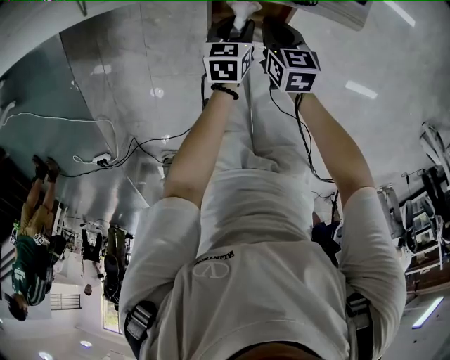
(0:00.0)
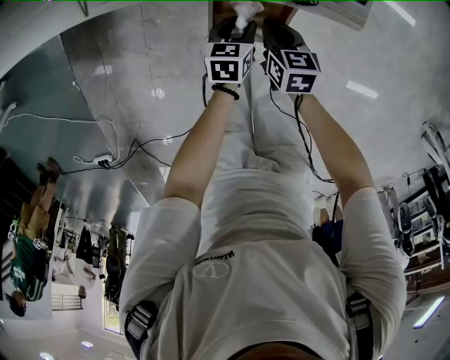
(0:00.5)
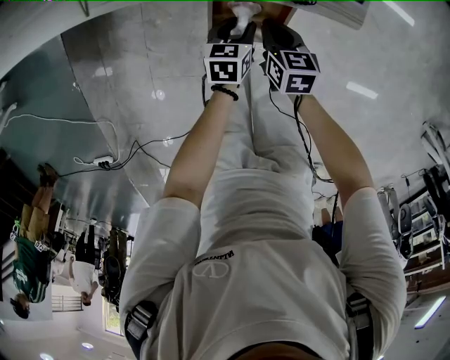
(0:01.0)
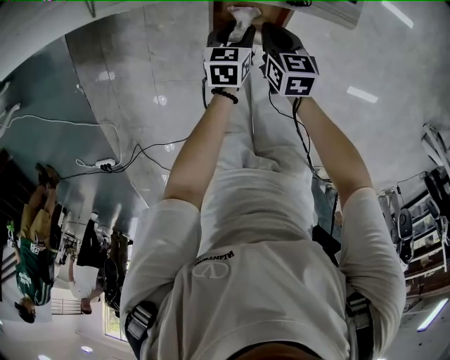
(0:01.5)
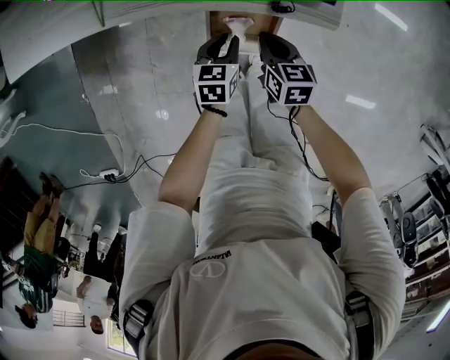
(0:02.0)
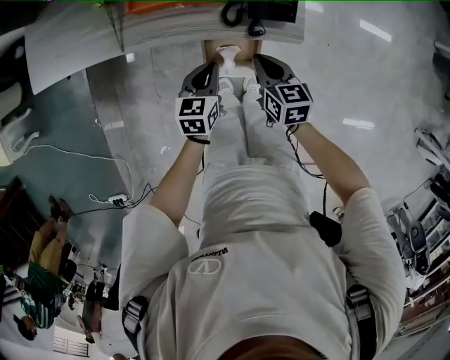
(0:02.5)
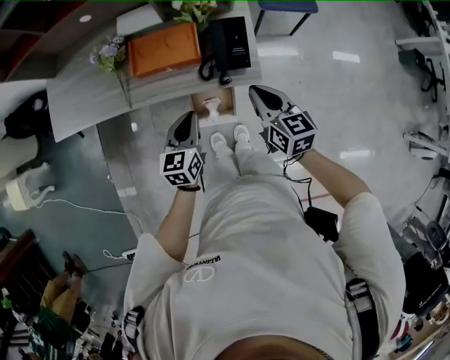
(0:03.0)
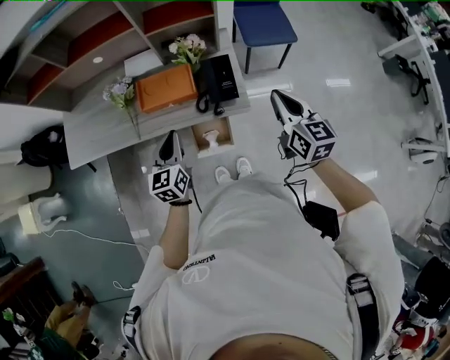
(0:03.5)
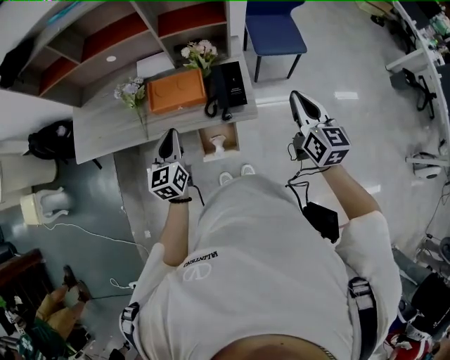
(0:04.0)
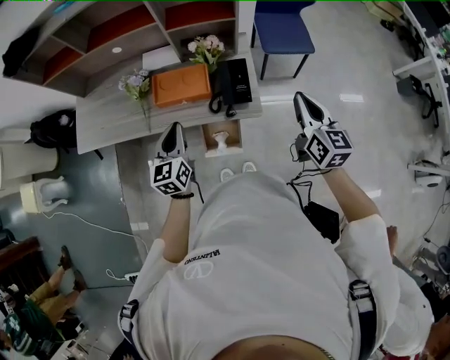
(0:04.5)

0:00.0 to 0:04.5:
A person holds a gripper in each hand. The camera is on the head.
0:00.0 to 0:02.0: Both grippers move upward, approximately 5 cm.
0:02.0 to 0:04.5: The left gripper heads upward, covering approximately 40 cm, and tips its fingers upward by approximately 30 degrees. Meanwhile the right gripper moves upward and to the right, approximately 50 cm, and tips its fingers upward by some 30 degrees.

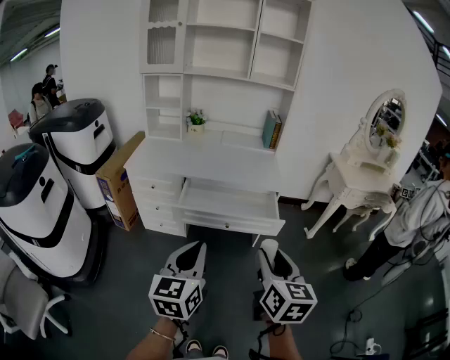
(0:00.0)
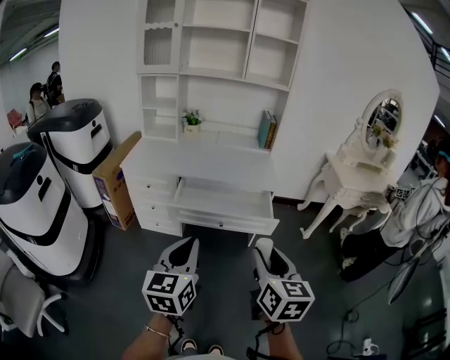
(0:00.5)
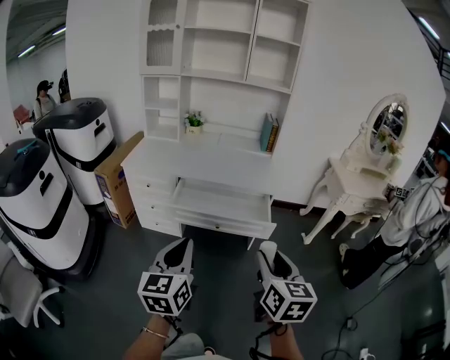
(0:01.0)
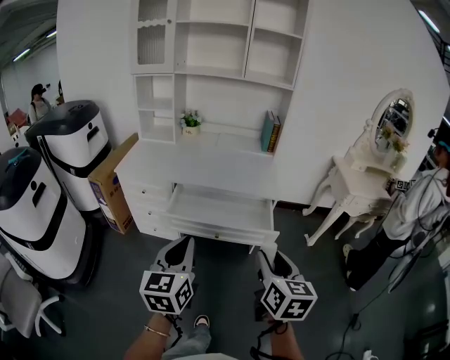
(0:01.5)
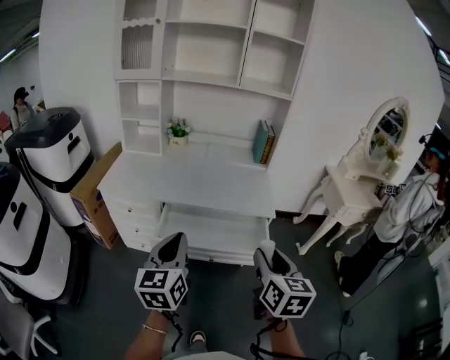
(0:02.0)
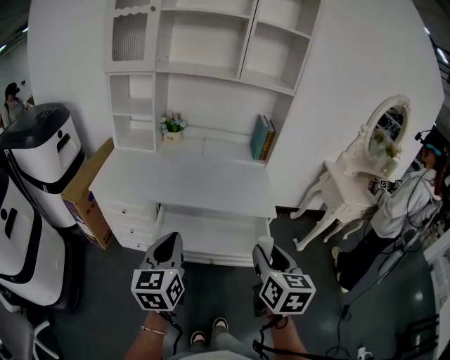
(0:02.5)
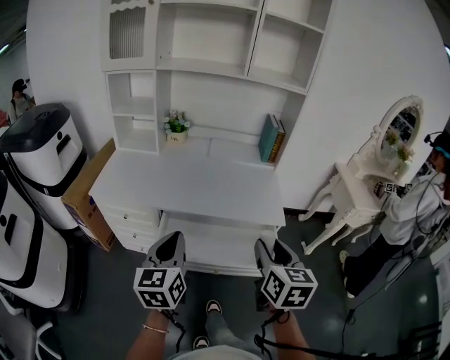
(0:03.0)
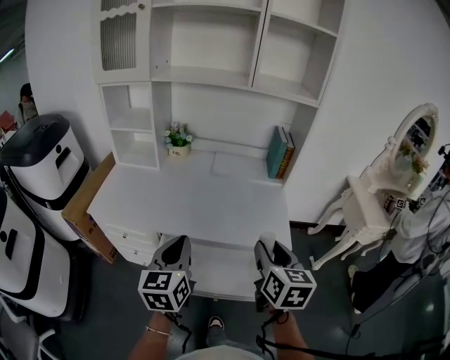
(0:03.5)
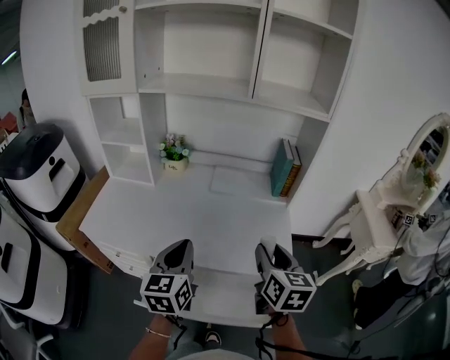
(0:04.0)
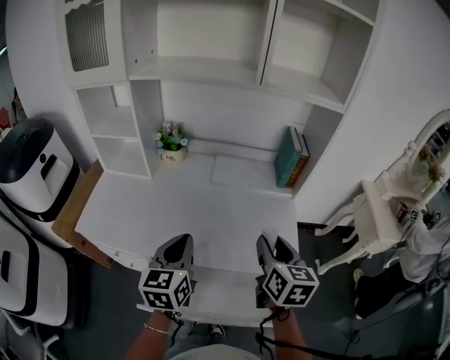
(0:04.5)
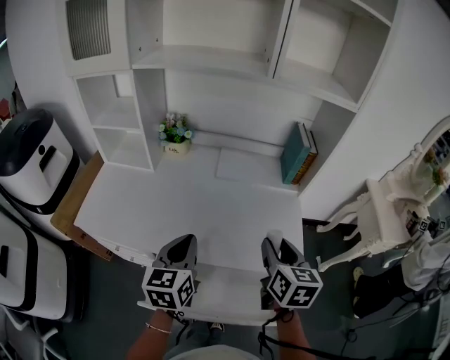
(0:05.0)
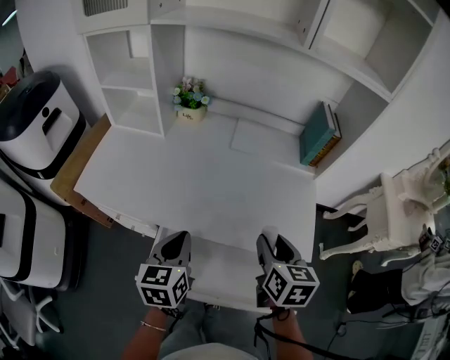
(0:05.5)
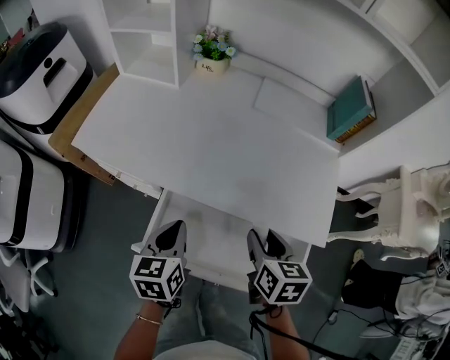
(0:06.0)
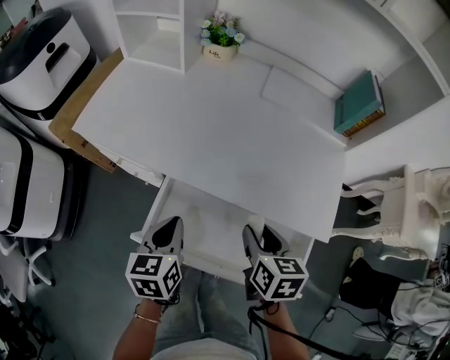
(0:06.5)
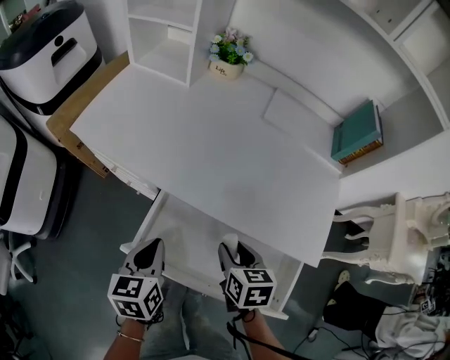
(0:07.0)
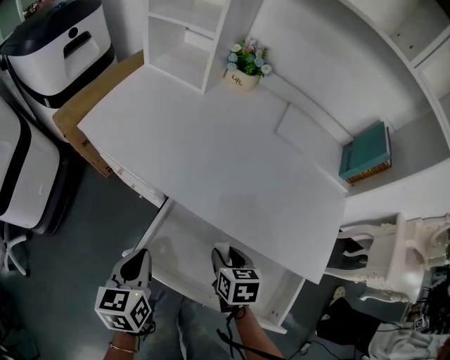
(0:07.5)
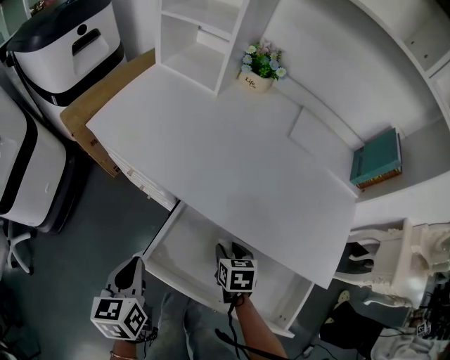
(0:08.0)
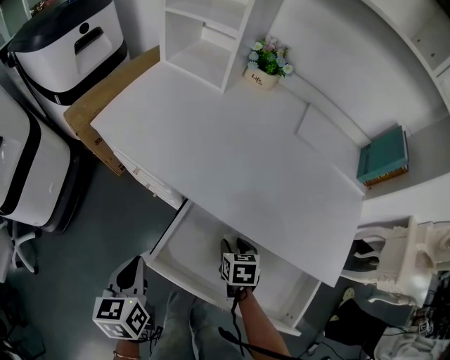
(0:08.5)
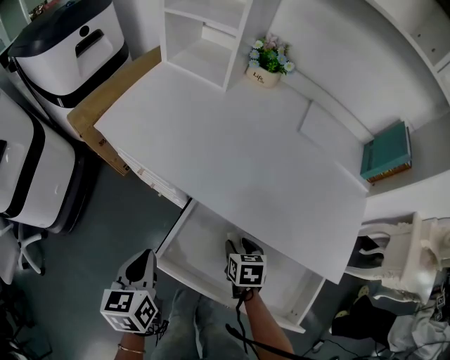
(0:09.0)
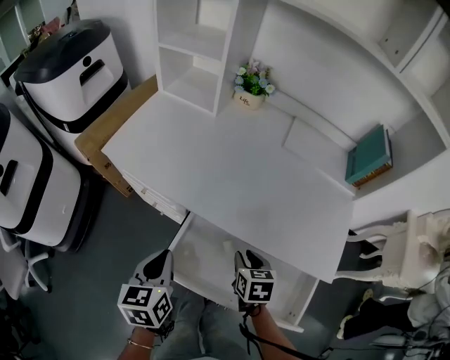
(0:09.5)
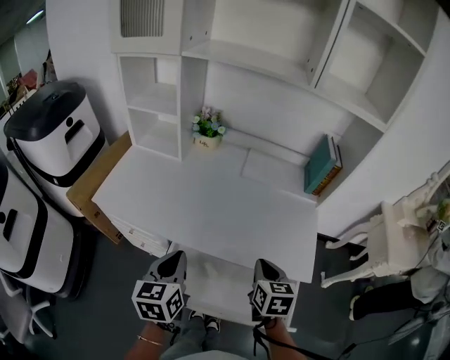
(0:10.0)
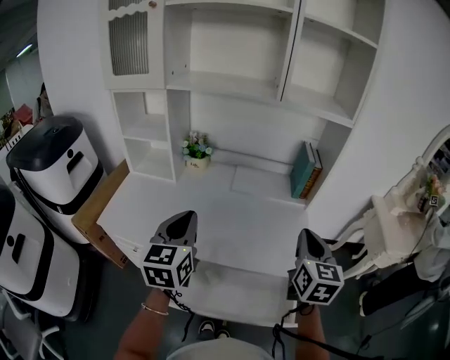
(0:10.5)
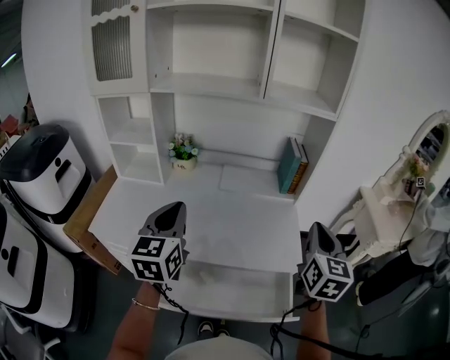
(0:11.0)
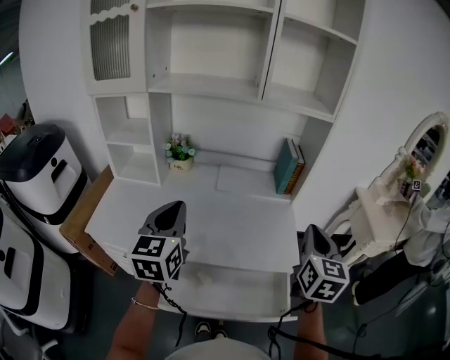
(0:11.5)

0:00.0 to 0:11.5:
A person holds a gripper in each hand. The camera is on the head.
0:00.0 to 0:02.0: Both grippers travel together forward, some 20 cm.
0:02.0 to 0:04.0: The grippers both shift forward by approximately 35 cm.
0:04.0 to 0:06.0: The two grippers go approximately 20 cm downward and to the left. The right gripper turns by approximately 30 degrees; the left gripper changes its angle by about 30 degrees.
0:06.0 to 0:07.5: The right gripper moves downward and to the left, some 15 cm, and swivels roughly 20 degrees. Meanwhile the left gripper shifts some 10 cm to the left.
0:07.5 to 0:09.5: The right gripper reaches approximately 5 cm downward, then returns.
0:09.5 to 0:11.5: Both grippers travel together upward, some 30 cm. The right gripper points its fingers roughly 40 degrees further upward, and closes up, while the left gripper rotates about 40 degrees.

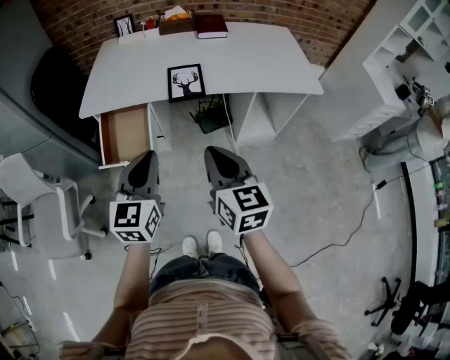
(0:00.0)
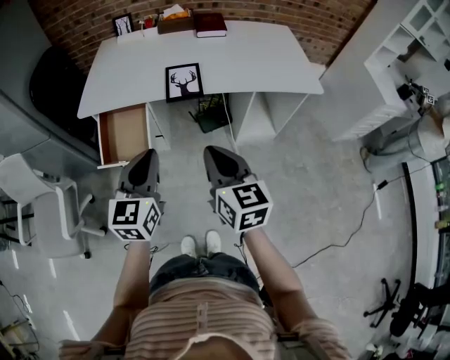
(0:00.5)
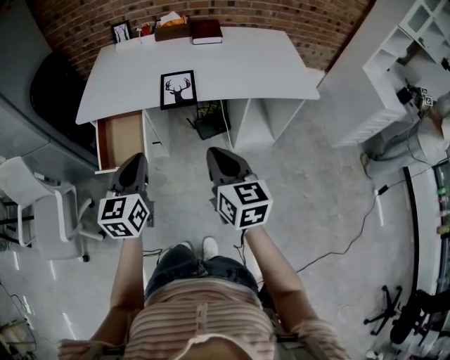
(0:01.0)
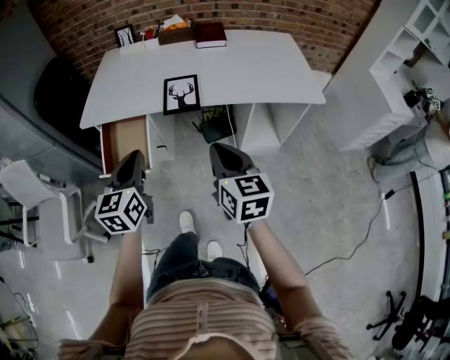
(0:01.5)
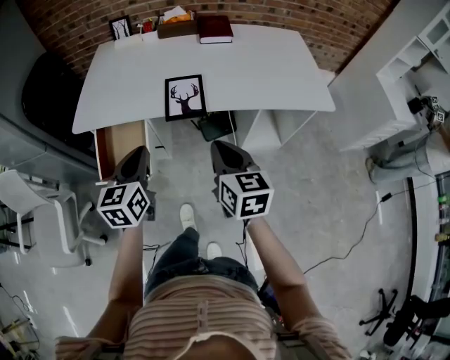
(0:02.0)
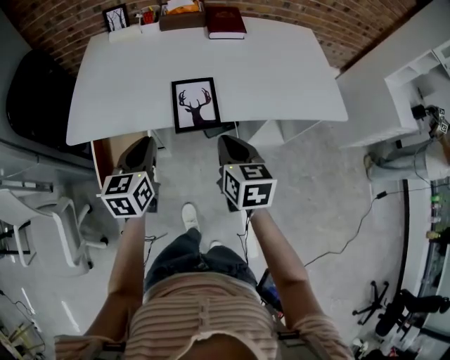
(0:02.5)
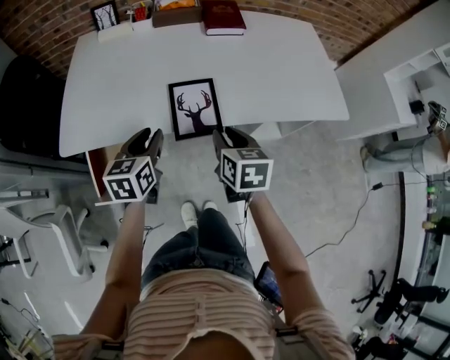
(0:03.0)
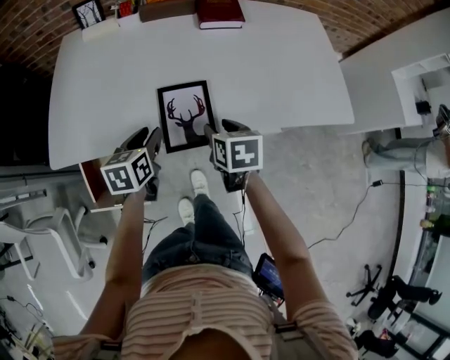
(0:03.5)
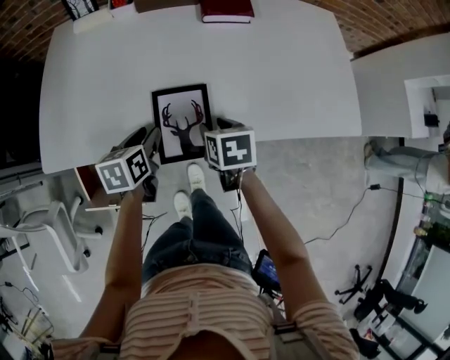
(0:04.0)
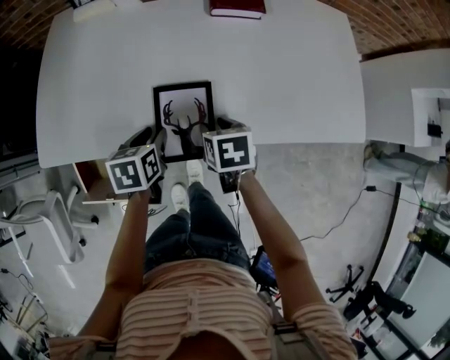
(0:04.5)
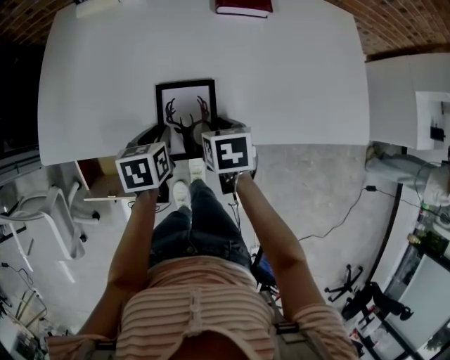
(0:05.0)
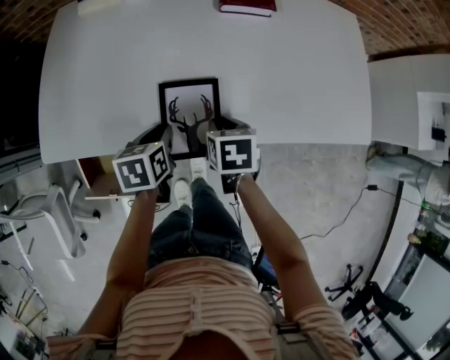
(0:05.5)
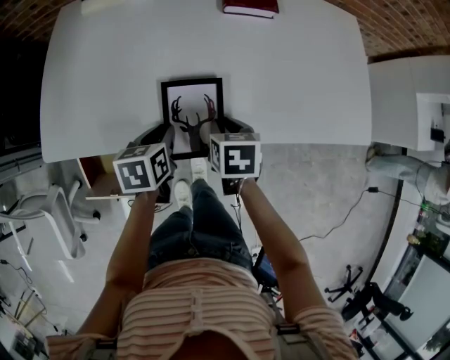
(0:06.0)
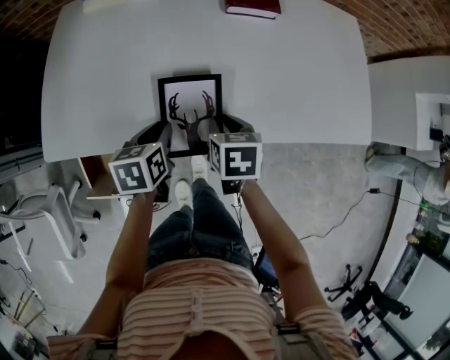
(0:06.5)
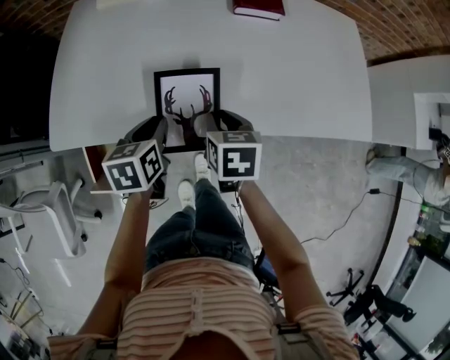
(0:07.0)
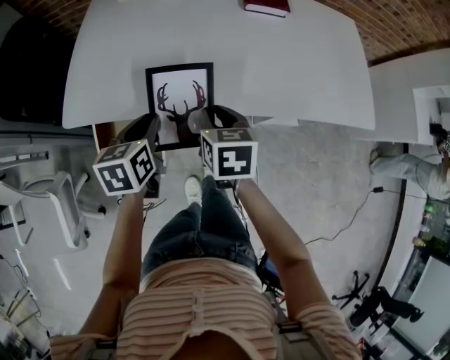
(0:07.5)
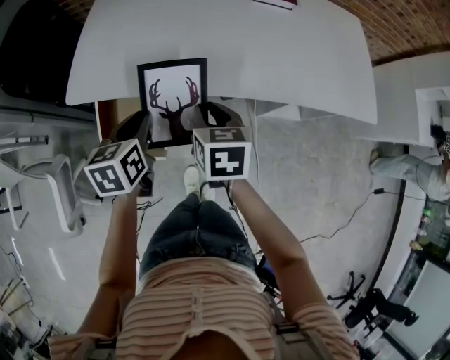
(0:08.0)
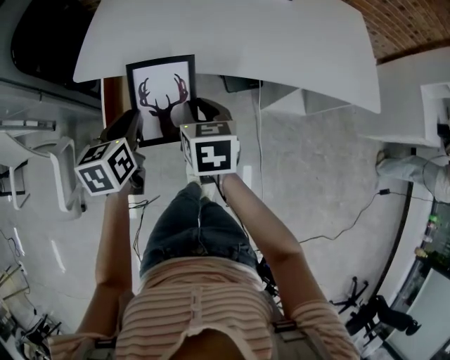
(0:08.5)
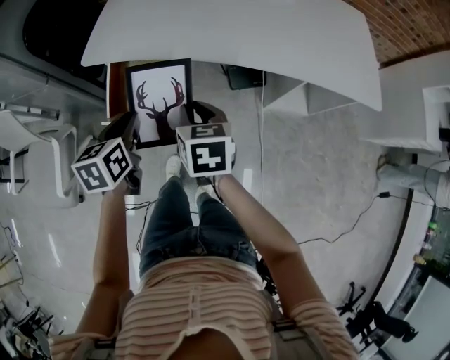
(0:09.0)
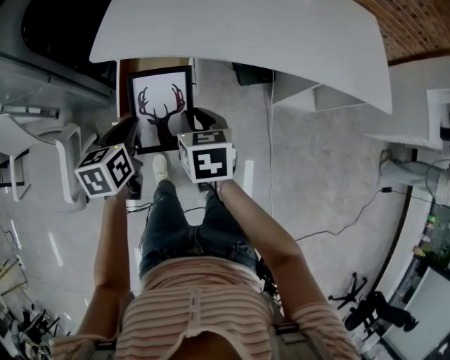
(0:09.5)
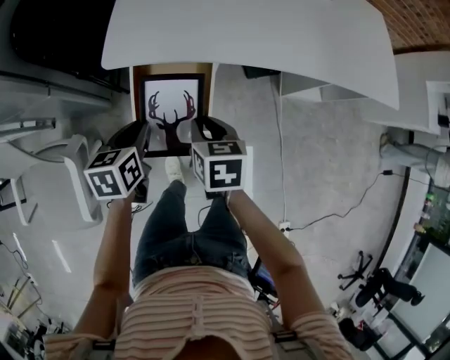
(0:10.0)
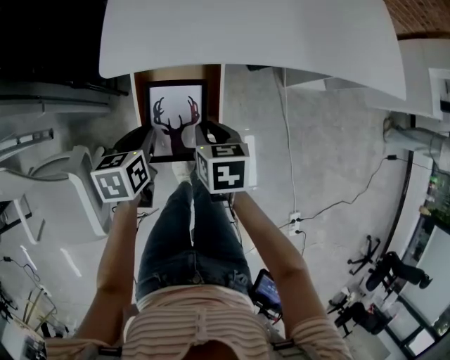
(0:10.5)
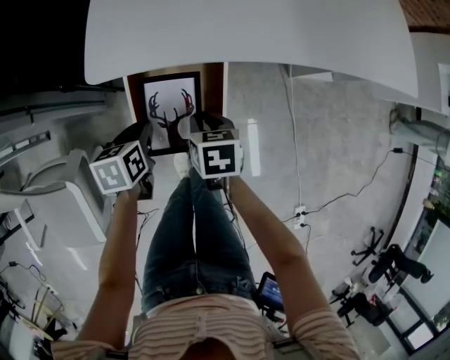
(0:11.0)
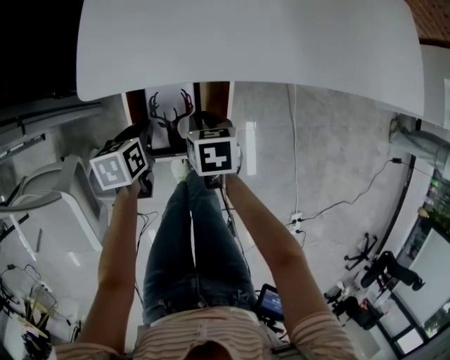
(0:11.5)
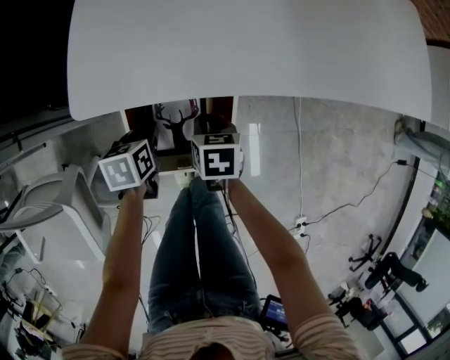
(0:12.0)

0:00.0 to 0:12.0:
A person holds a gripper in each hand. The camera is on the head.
0:00.0 to 0:02.0: Both grippers move forward, roughly 15 cm.
0:02.0 to 0:04.0: The grippers both shift forward and downward by roughly 35 cm. The right gripper points its fingers approximately 40 degrees further downward, and opens up. Meanwhile the left gripper swivels about 30 degrees, and opens its fingers.
0:04.0 to 0:06.0: The right gripper closes up.
0:06.0 to 0:08.0: Both grippers travel together backward, to the left and upward, roughly 20 cm.
0:08.0 to 0:10.0: Both grippers travel together to the left, some 20 cm.
0:10.0 to 0:12.0: Both grippers travel together downward and forward, some 25 cm.
